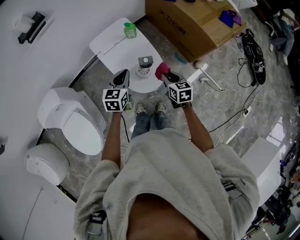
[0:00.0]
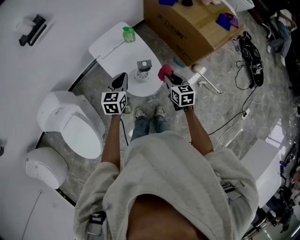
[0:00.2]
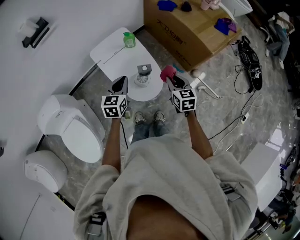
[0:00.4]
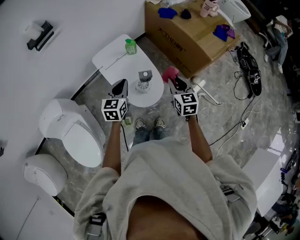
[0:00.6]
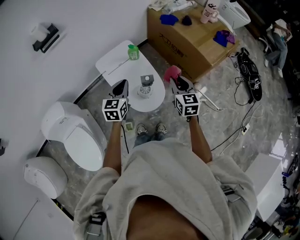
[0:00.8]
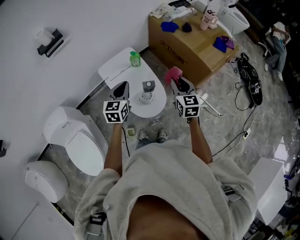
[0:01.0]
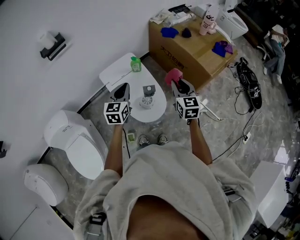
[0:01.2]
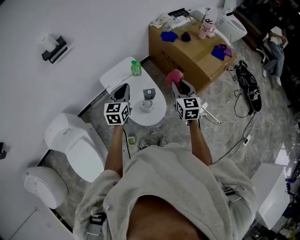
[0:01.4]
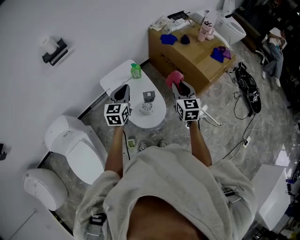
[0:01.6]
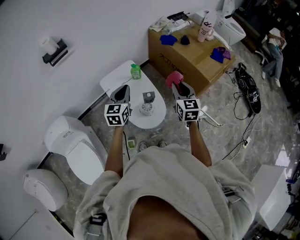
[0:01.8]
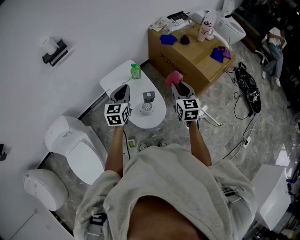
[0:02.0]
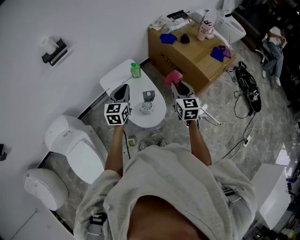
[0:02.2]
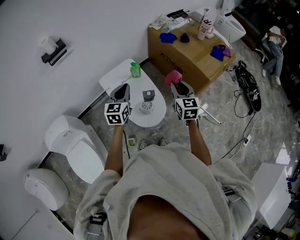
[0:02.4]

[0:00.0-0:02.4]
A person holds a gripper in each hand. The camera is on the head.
0:00.0 to 0:01.2: The left gripper travels upward by roughly 10 cm, while the right gripper is displaced upward by some 15 cm, and changes its angle by approximately 30 degrees.
0:01.2 to 0:02.4: The grippers move only a little.

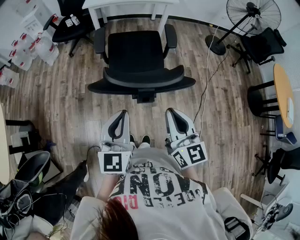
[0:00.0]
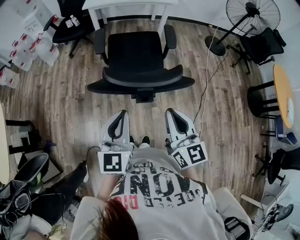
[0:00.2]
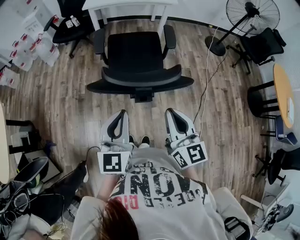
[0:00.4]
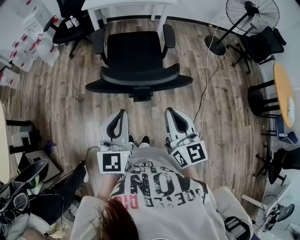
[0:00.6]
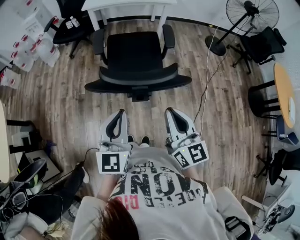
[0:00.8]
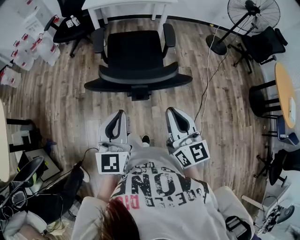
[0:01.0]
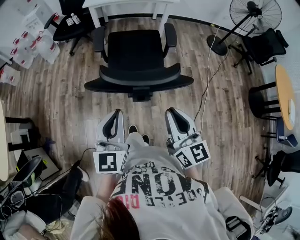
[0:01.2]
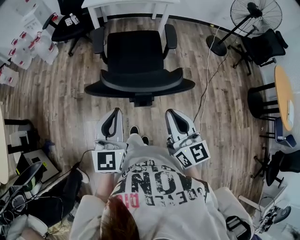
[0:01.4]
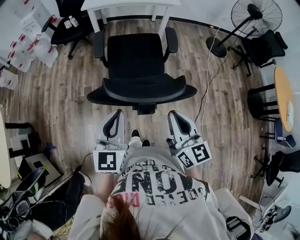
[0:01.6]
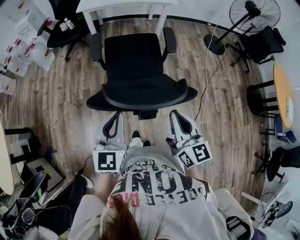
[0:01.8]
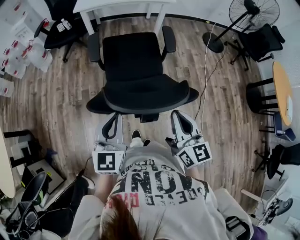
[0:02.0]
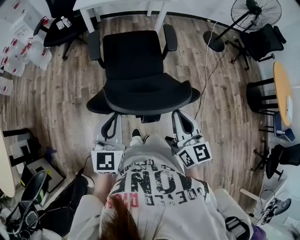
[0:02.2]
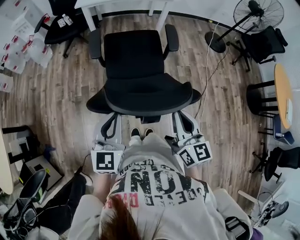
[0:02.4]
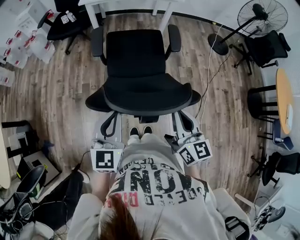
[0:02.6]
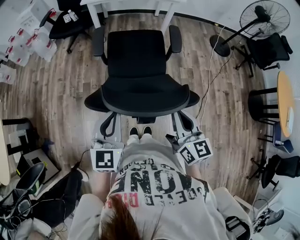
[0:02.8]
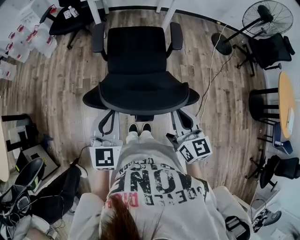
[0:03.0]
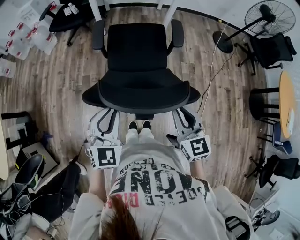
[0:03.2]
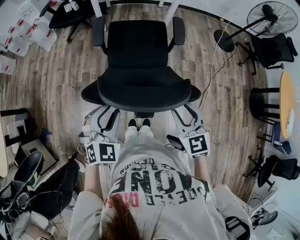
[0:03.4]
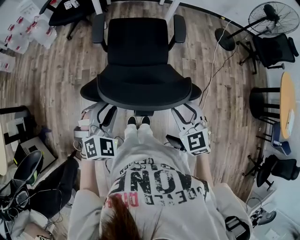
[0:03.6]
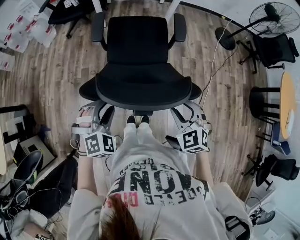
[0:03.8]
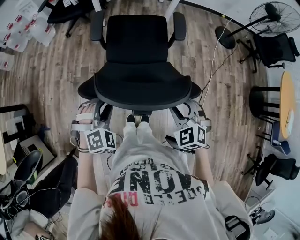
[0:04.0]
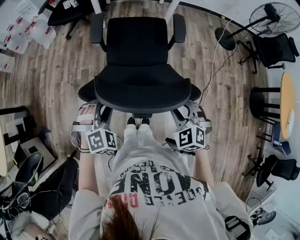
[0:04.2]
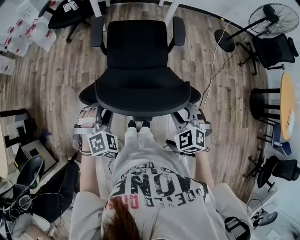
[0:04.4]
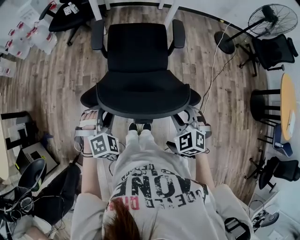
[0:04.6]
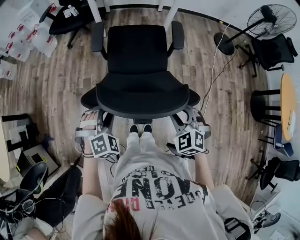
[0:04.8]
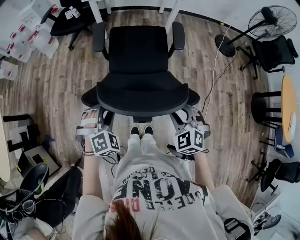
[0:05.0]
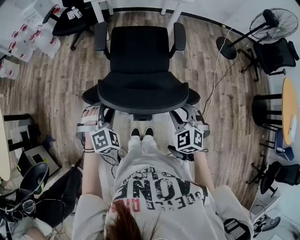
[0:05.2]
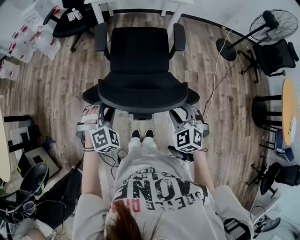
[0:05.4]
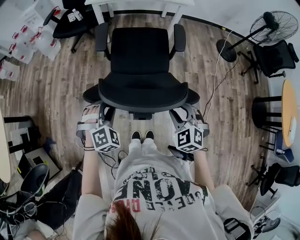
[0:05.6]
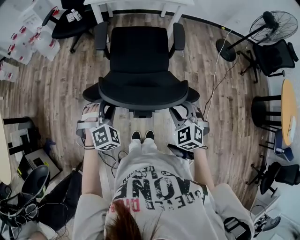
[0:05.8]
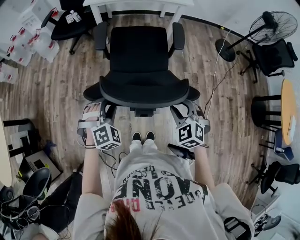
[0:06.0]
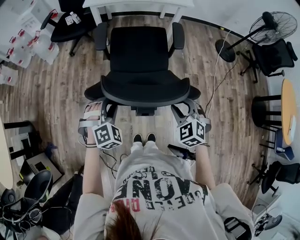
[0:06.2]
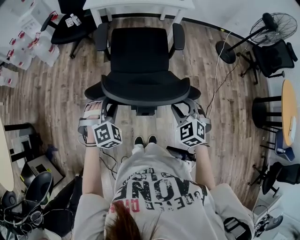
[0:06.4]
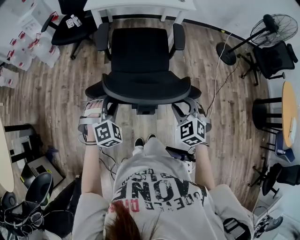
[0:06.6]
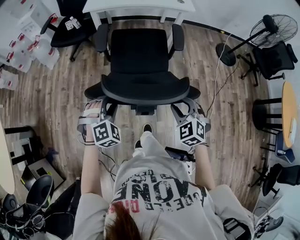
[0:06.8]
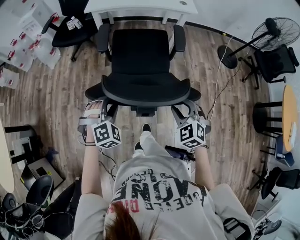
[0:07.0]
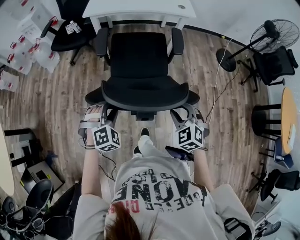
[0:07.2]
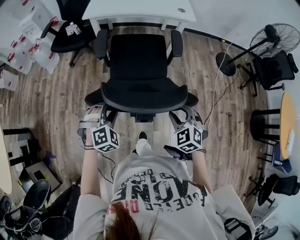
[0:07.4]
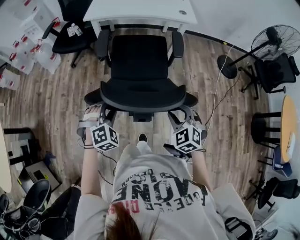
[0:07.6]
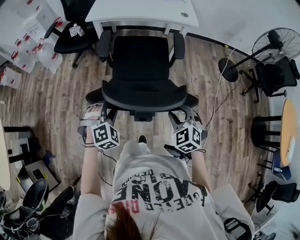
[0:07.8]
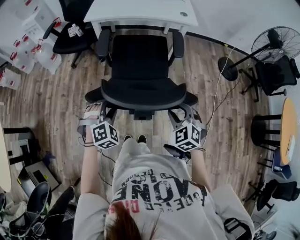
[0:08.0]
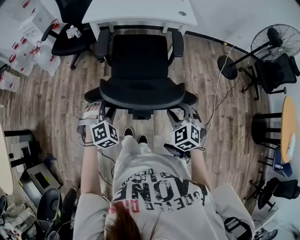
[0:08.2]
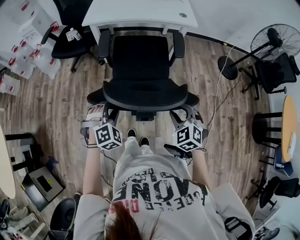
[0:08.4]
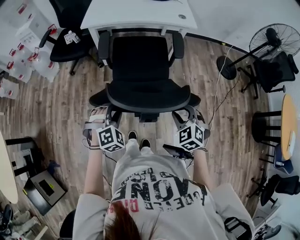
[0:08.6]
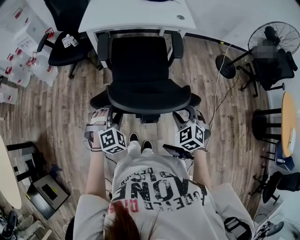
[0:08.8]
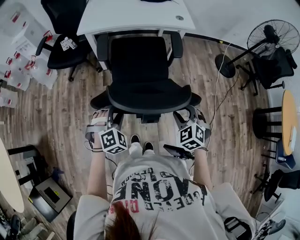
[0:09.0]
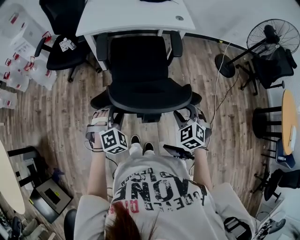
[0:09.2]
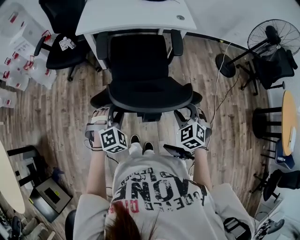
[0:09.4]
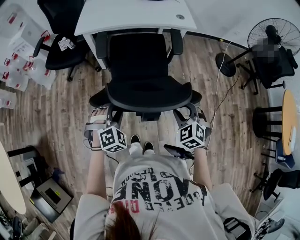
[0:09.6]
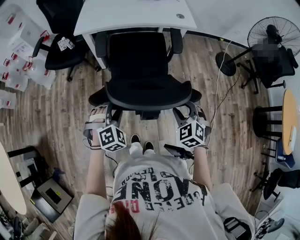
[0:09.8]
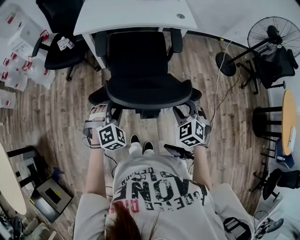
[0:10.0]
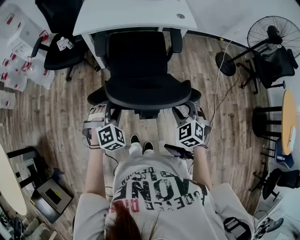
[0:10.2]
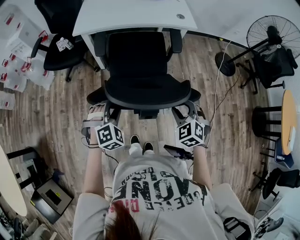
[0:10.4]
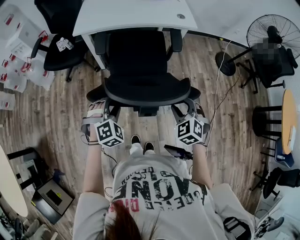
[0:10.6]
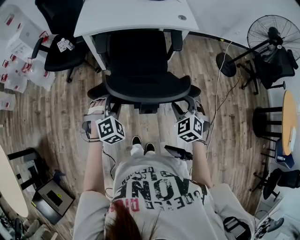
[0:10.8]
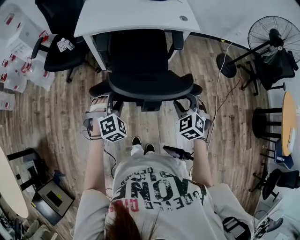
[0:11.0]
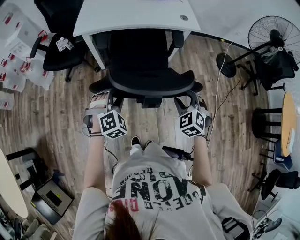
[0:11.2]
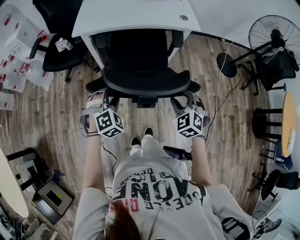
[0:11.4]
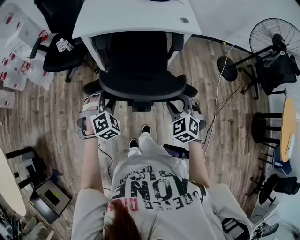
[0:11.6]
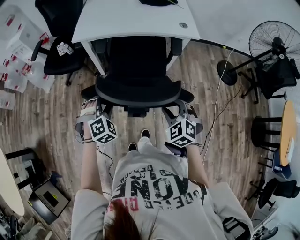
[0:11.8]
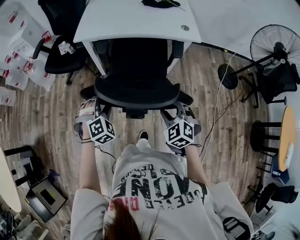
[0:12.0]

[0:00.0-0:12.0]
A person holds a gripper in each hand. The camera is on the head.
0:00.0 to 0:01.6: The left gripper is displaced forward by some 5 cm.
0:01.6 to 0:03.0: The left gripper shifts by some 5 cm. The right gripper travels forward by about 5 cm.
0:03.0 to 0:04.4: Both grippers travel together downward, some 10 cm. The right gripper rotates around the line of its fingers by some 50 degrees, counterclockwise from behind, and opens its fingers, while the left gripper rolls clockwise, seen from behind, by roughly 50 degrees, and opens up.
0:04.4 to 0:06.0: Both grippers move forward, some 10 cm.
0:06.0 to 0:07.6: The grippers both shift forward by about 10 cm.
0:07.6 to 0:09.0: The grippers both shift forward by about 10 cm.
0:09.0 to 0:10.4: The grippers both shift forward by roughly 5 cm.
0:10.4 to 0:12.0: Both grippers travel together forward, some 10 cm.

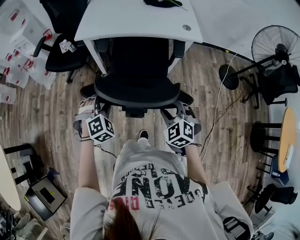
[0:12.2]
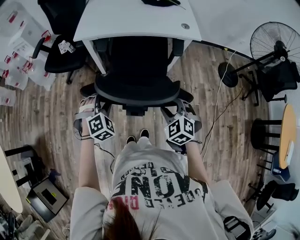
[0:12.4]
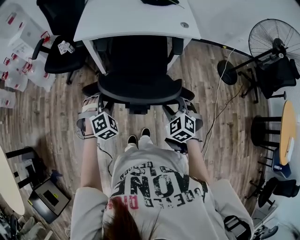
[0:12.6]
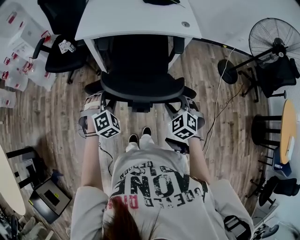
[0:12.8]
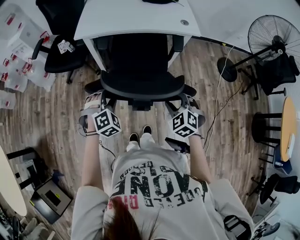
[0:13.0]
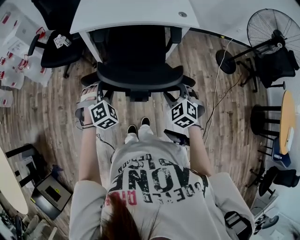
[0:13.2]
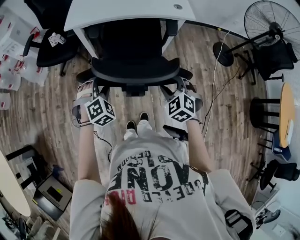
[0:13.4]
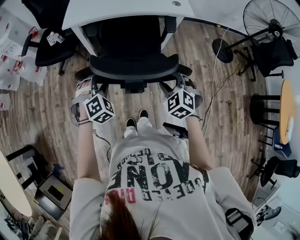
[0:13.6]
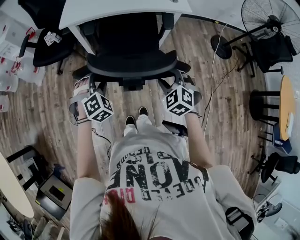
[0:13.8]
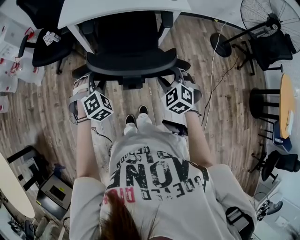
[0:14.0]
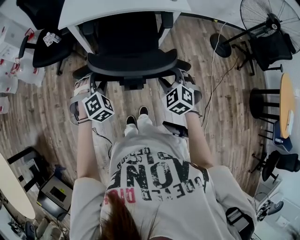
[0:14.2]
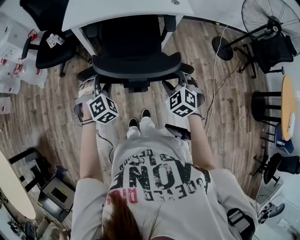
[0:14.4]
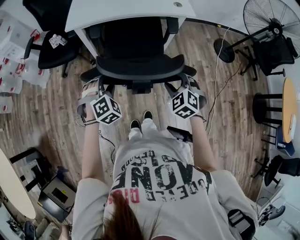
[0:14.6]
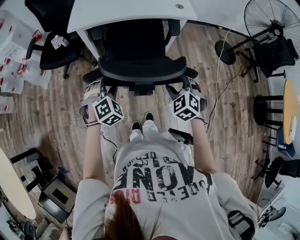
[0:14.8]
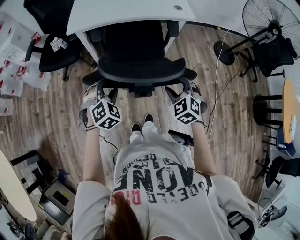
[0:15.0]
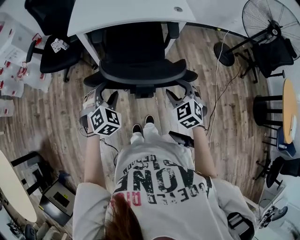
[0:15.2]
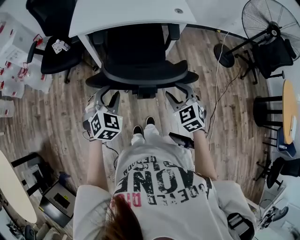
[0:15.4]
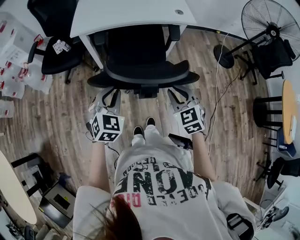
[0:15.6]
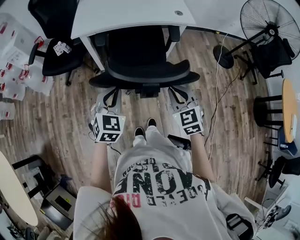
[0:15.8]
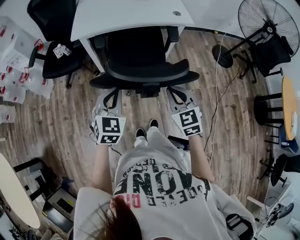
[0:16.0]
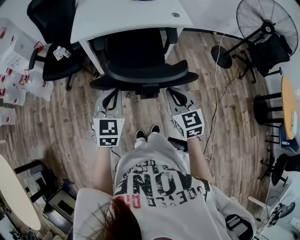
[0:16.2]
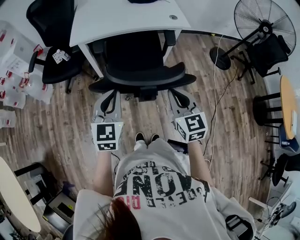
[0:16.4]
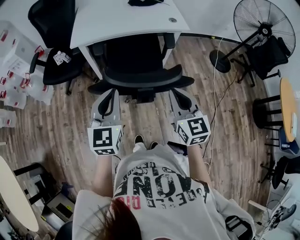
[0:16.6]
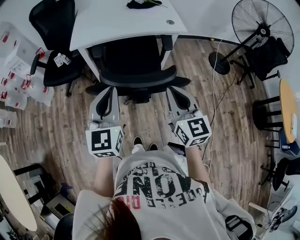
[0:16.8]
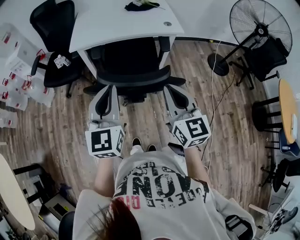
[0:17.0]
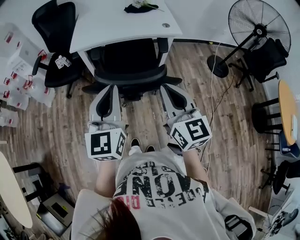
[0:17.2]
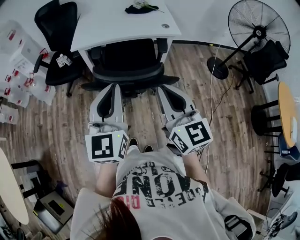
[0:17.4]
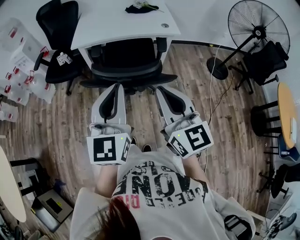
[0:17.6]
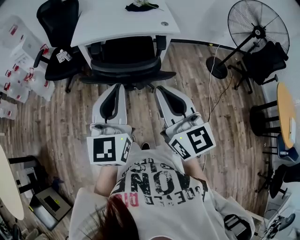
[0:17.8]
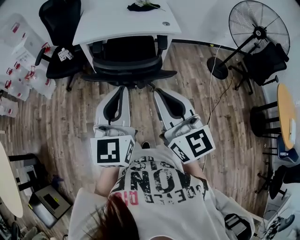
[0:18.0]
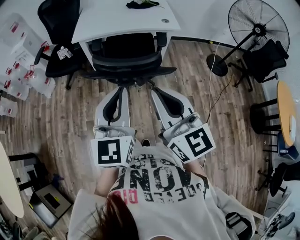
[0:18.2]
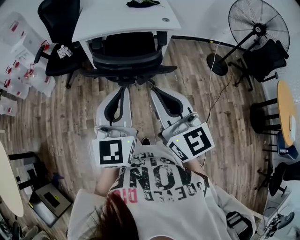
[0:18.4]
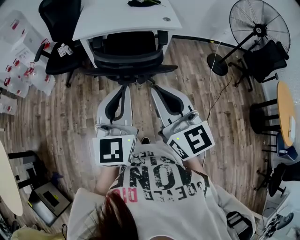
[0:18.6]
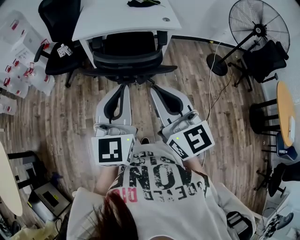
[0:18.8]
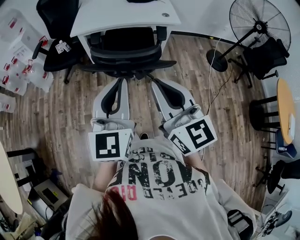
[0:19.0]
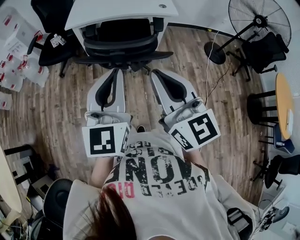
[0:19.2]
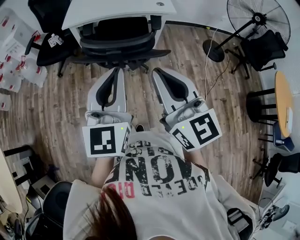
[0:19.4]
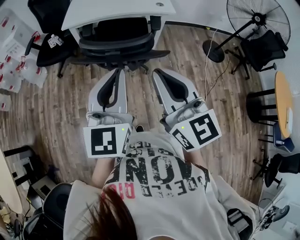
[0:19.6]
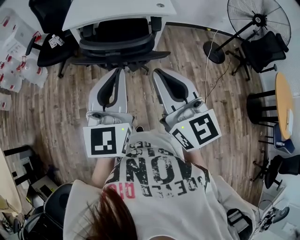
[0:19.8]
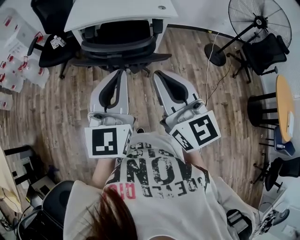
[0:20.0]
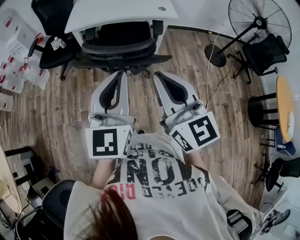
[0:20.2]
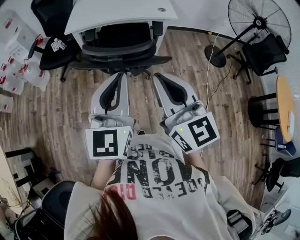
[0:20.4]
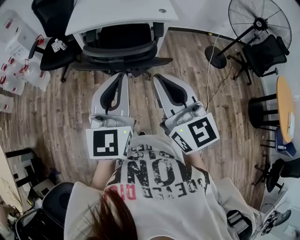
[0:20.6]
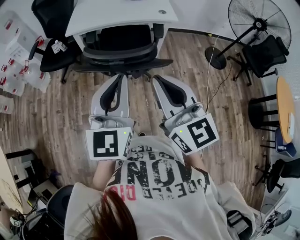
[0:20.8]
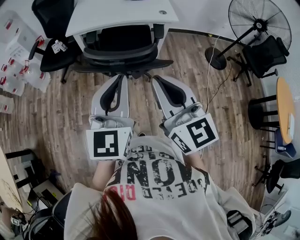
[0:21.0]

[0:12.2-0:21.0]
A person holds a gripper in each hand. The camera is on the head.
0:12.2 to 0:15.2: The grippers move only a little.
0:15.2 to 0:16.6: The two grippers go approximately 15 cm upward. The right gripper rotates approximately 40 degrees, and closes up; the left gripper angles its fingers upward, by approximately 30 degrees, and closes its fingers.
0:16.6 to 0:18.0: The right gripper goes about 20 cm upward and backward, and changes its angle by approximately 20 degrees. The left gripper goes about 20 cm backward, upward and to the right.
0:18.0 to 0:21.0: The grippers stay close to where they were, moving slightly.
